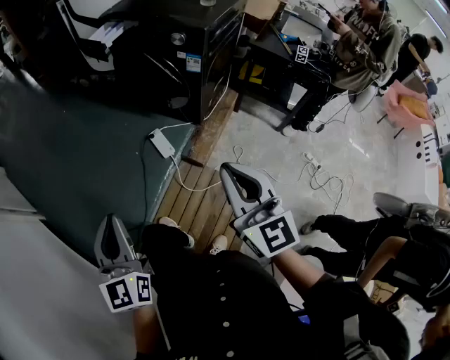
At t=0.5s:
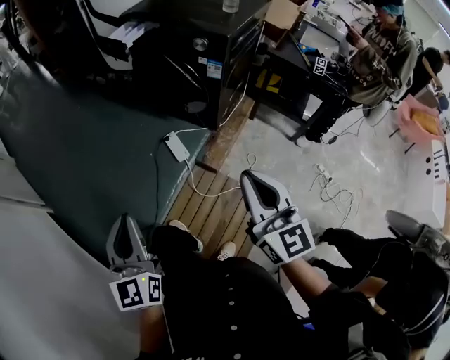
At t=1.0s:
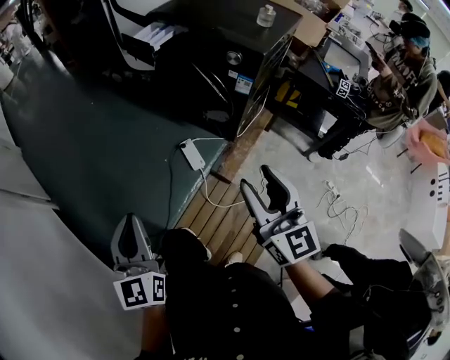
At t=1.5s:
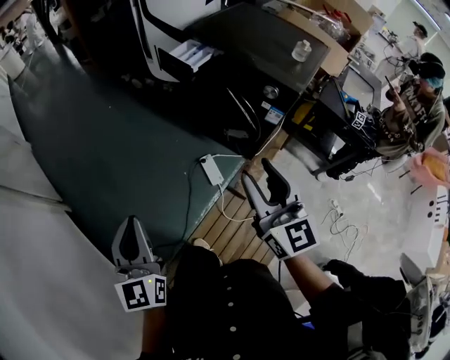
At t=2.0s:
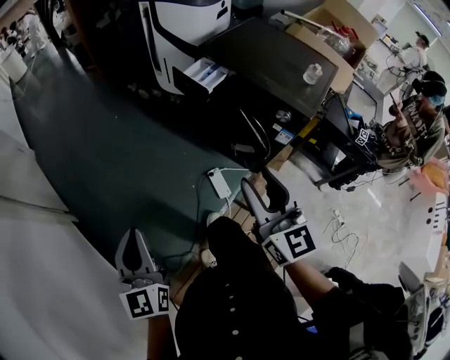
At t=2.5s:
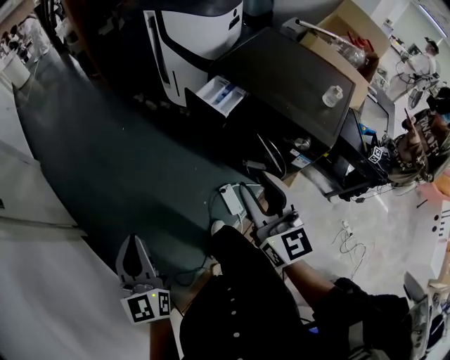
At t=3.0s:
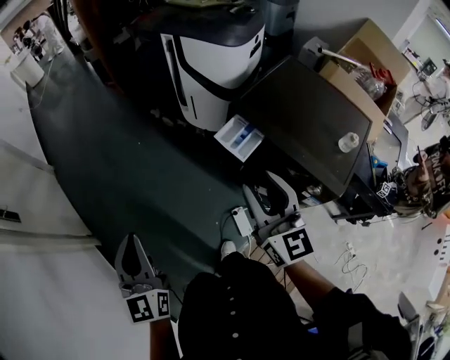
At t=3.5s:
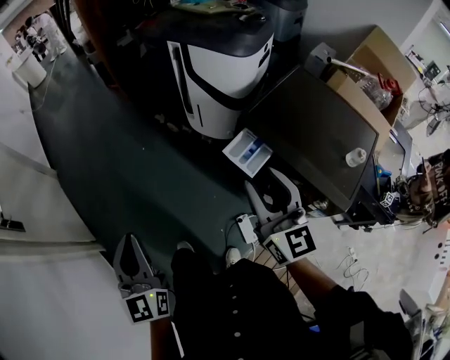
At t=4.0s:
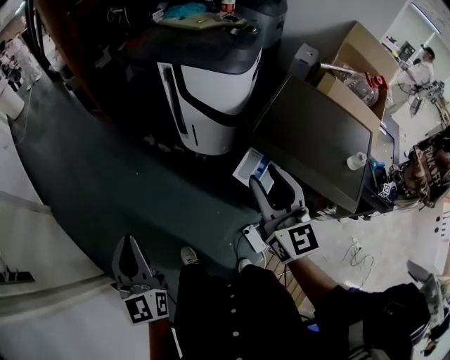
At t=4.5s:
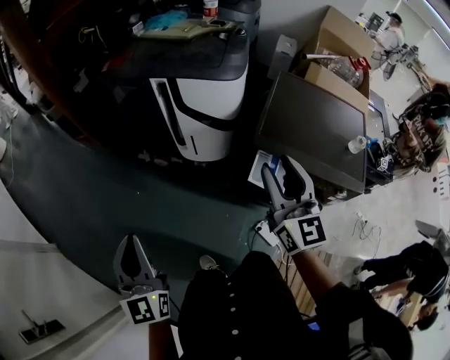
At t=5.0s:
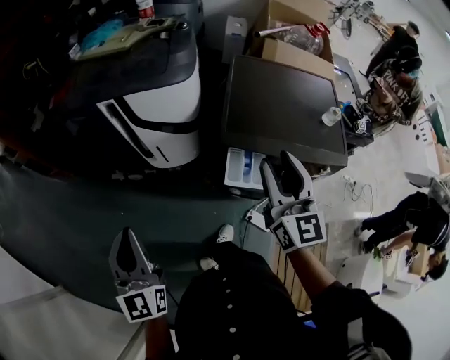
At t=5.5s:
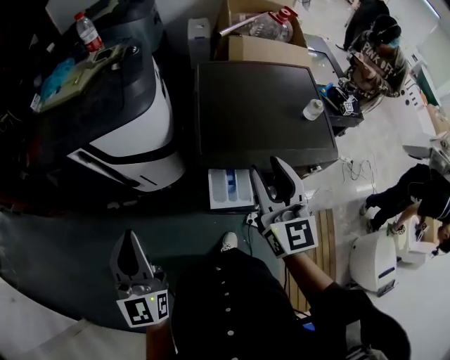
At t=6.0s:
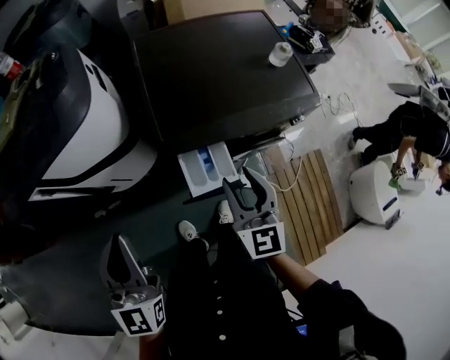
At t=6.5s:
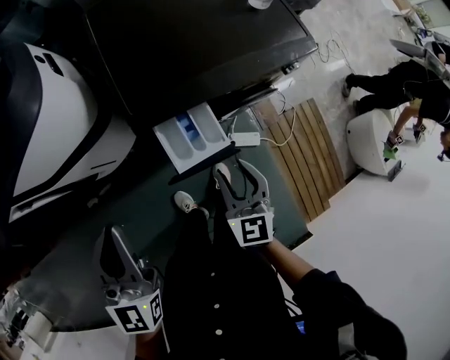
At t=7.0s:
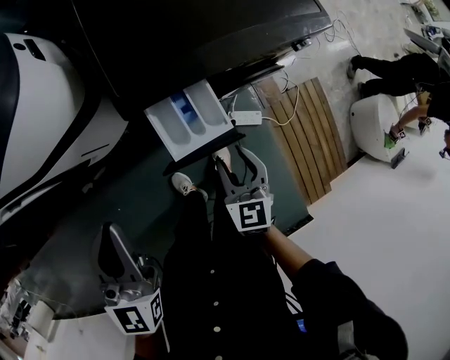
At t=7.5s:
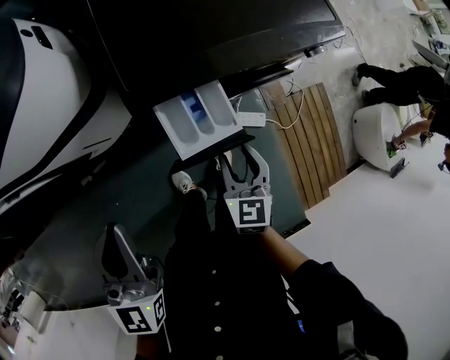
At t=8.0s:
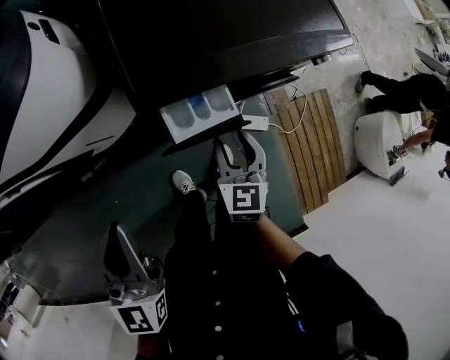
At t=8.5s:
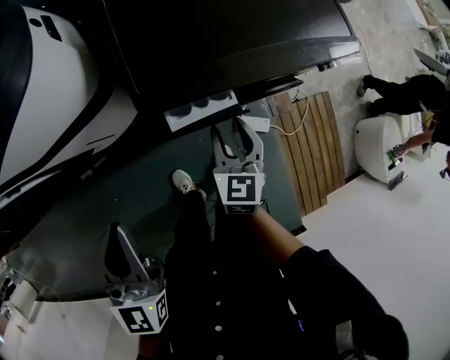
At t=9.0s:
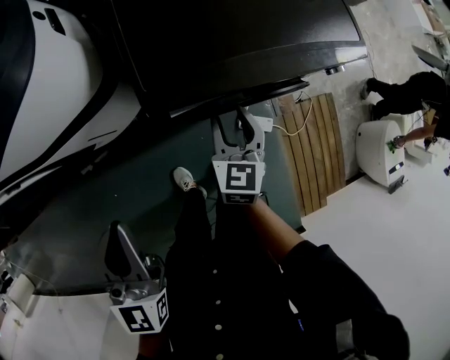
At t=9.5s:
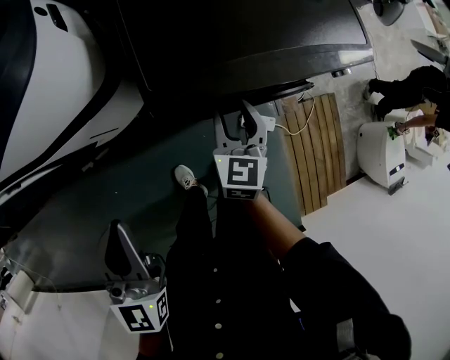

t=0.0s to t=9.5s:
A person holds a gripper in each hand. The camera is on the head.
t=0.0s to t=2.0s: The right gripper goes about 30 cm forward and to the left, and opens its fingers. Meanwhile the left gripper heads forward, to the left and upward, covering roughly 30 cm.
t=2.0s to t=4.0s: Both grippers are carried forward, roughly 40 cm.
t=4.0s to t=5.5s: The left gripper shifts by approximately 30 cm, and swivels roughly 40 degrees, while the right gripper changes place by some 15 cm, and rotates some 40 degrees.
t=5.5s to t=7.5s: The right gripper shifts approximately 30 cm downward, and tips its fingers downward by approximately 30 degrees; the left gripper goes some 15 cm downward, and swivels roughly 30 degrees.
t=7.5s to t=9.5s: The right gripper heads forward, covering about 15 cm.

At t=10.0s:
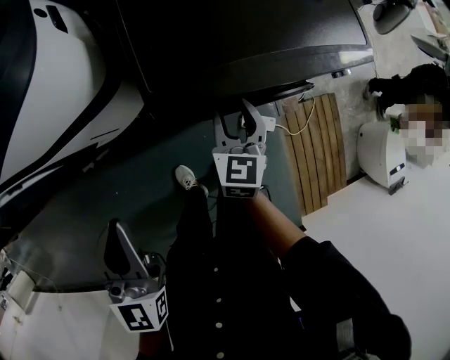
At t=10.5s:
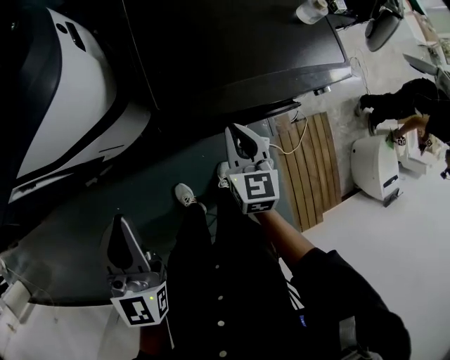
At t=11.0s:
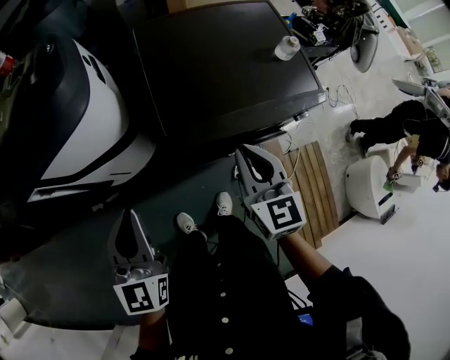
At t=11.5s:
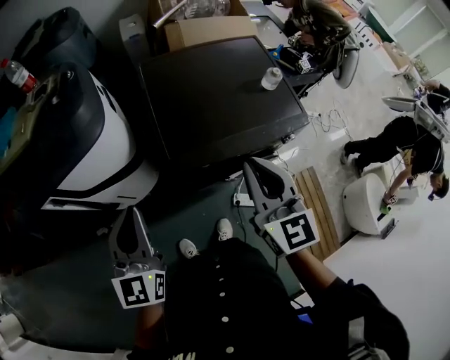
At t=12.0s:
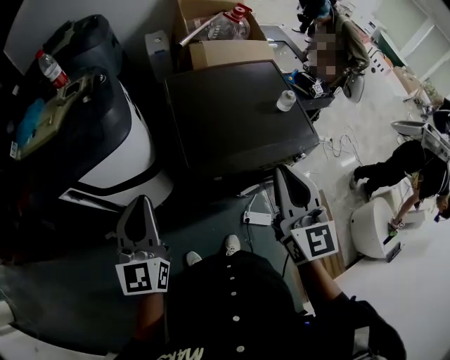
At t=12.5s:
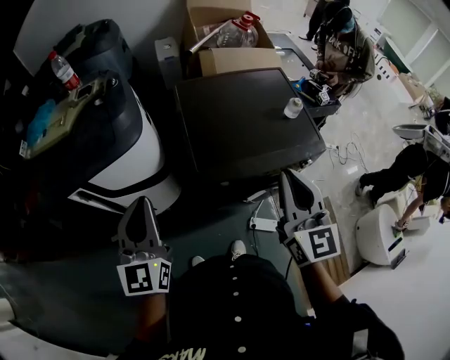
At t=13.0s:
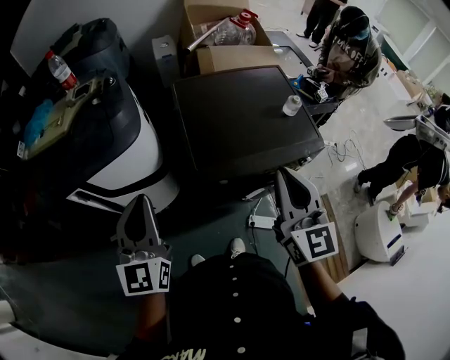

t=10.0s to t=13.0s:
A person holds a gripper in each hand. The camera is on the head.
t=10.0s to t=11.5s: The right gripper goes roughly 30 cm upward, rotates about 30 degrees, and closes; the left gripper goes about 10 cm upward.
t=11.5s to t=13.0s: The left gripper changes place by approximately 5 cm.

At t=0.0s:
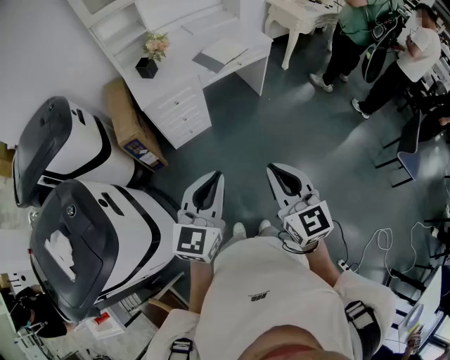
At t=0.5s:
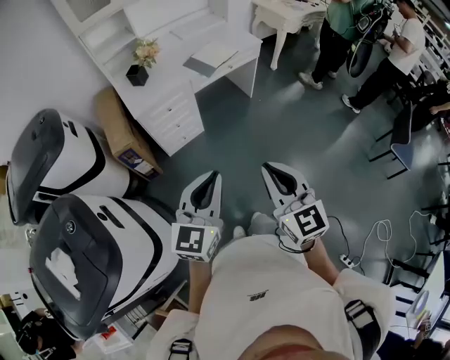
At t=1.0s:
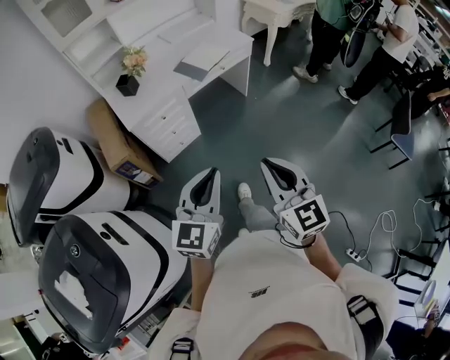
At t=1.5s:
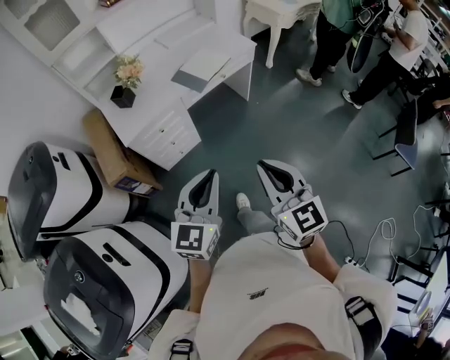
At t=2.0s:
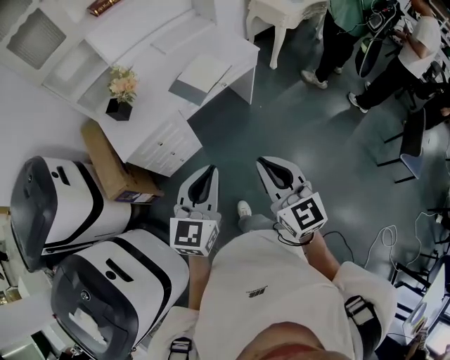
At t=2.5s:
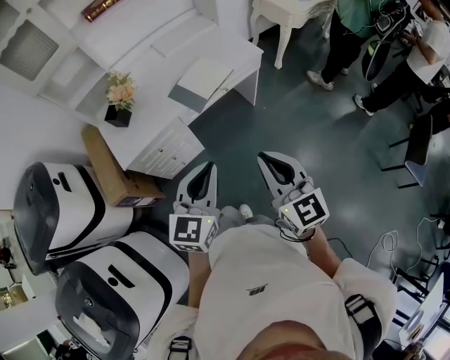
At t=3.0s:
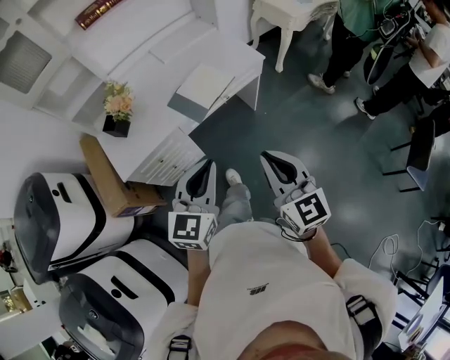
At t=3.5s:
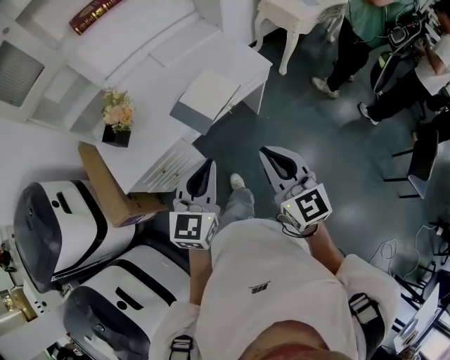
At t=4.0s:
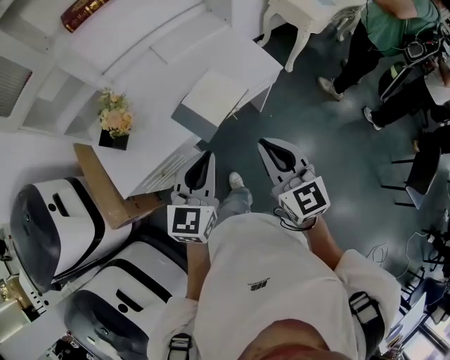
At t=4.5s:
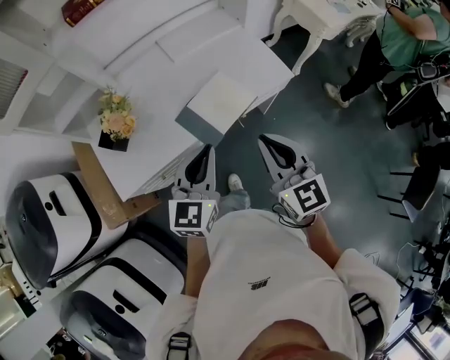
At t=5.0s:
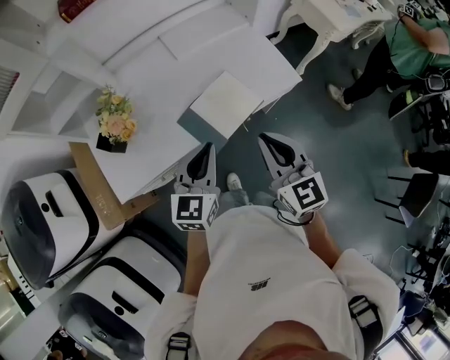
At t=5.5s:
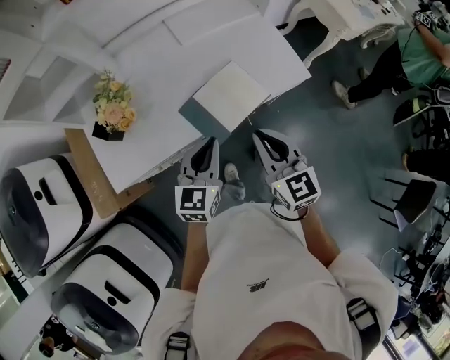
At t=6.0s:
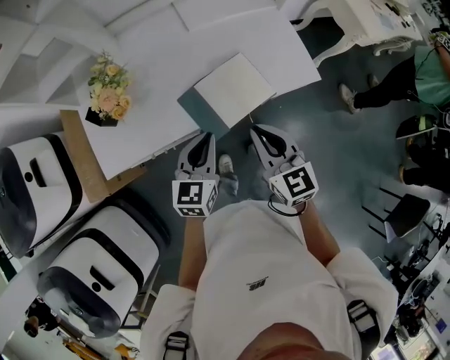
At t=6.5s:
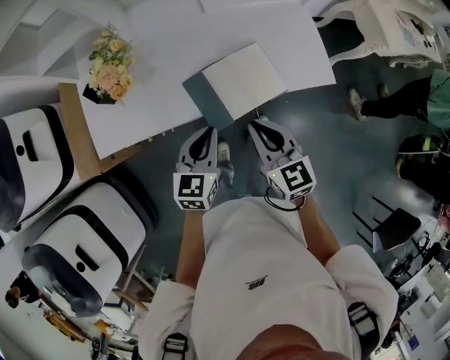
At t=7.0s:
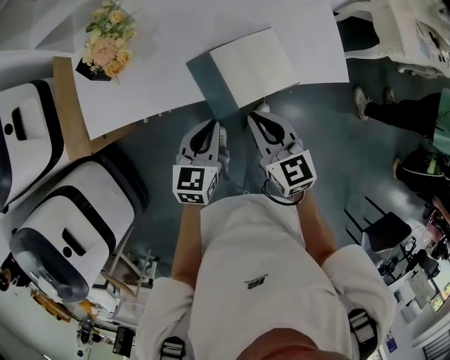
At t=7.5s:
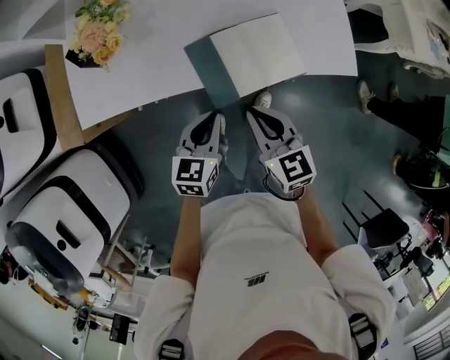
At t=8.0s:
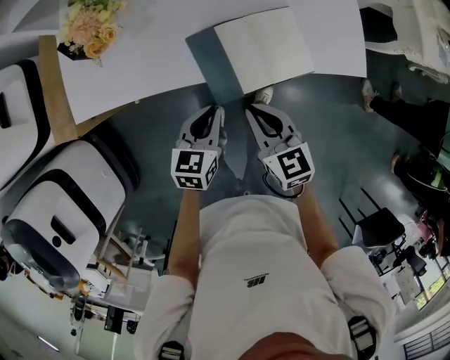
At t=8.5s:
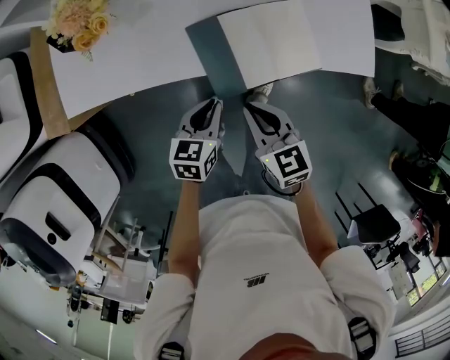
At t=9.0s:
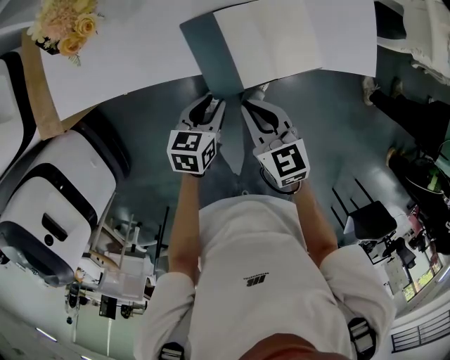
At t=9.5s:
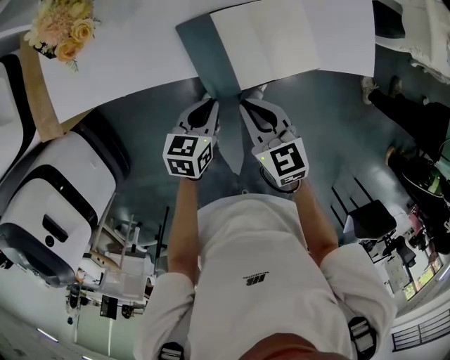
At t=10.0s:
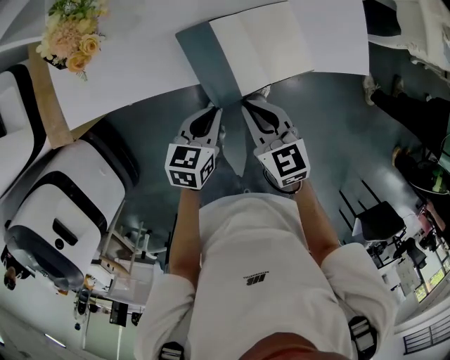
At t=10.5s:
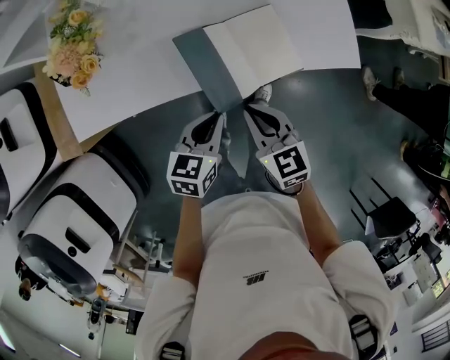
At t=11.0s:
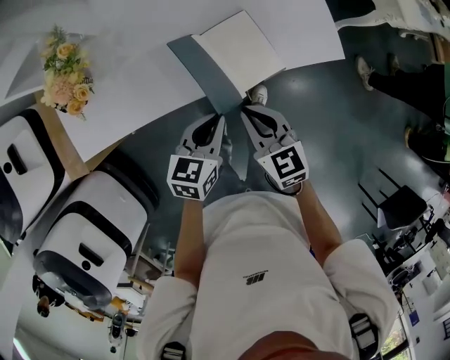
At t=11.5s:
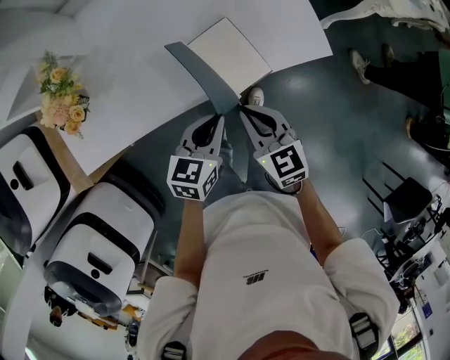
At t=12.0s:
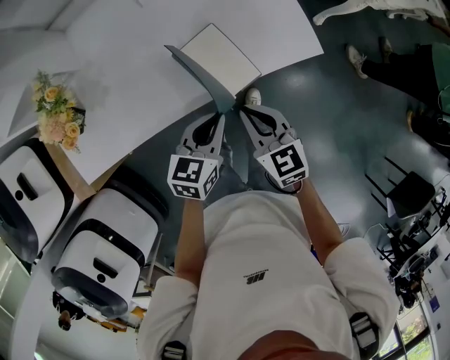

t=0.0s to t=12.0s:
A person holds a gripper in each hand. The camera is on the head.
t=0.0s to t=2.0s: The grippers both shift forward by approximately 30 cm.
t=2.0s to t=4.0s: Both grippers move forward, approximately 30 cm.
t=4.0s to t=6.0s: The left gripper goes about 20 cm downward and forward, and changes its angle by approximately 20 degrees; the right gripper heads forward and downward, covering some 20 cm.
t=6.0s to t=8.0s: The grippers both shift downward by approximately 15 cm. The right gripper rotates roughly 20 degrees.
t=10.0s to t=12.0s: The right gripper heads to the right, covering about 10 cm, while the left gripper travels to the right, upward and forward by some 15 cm.

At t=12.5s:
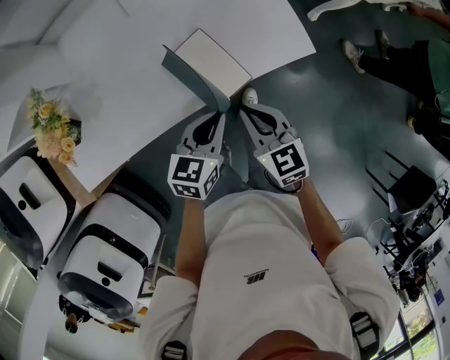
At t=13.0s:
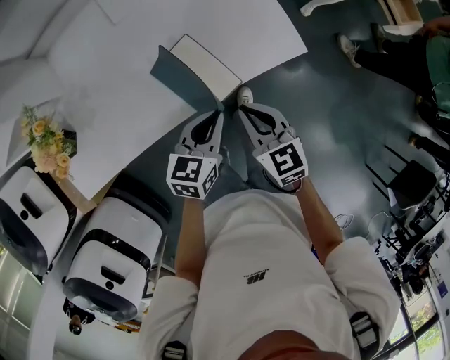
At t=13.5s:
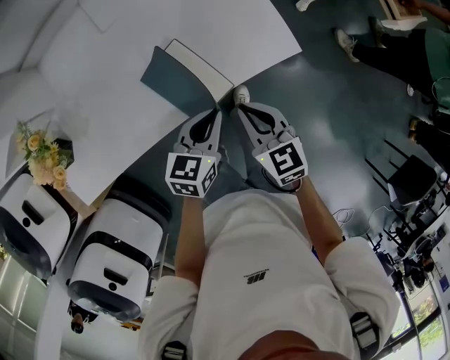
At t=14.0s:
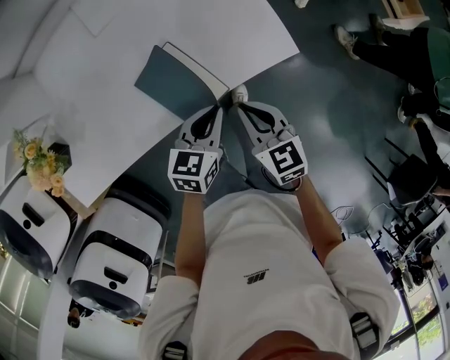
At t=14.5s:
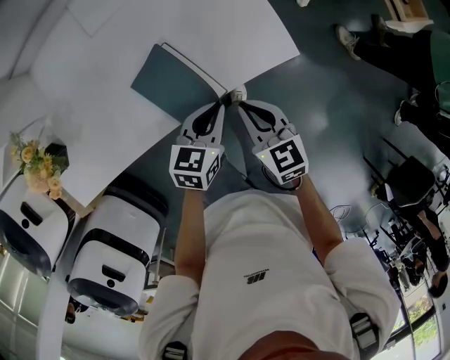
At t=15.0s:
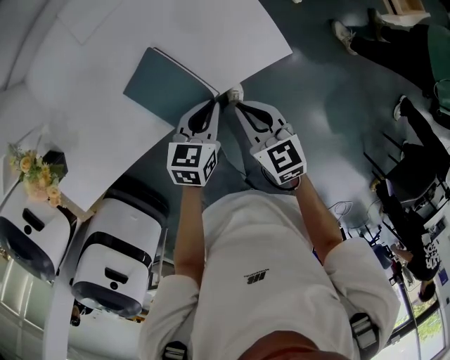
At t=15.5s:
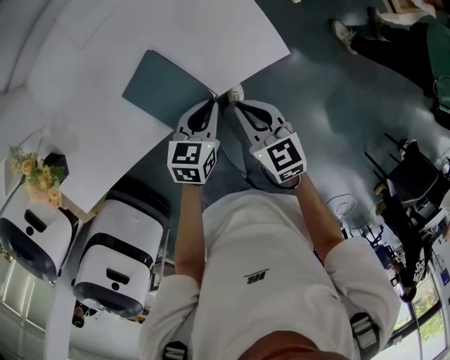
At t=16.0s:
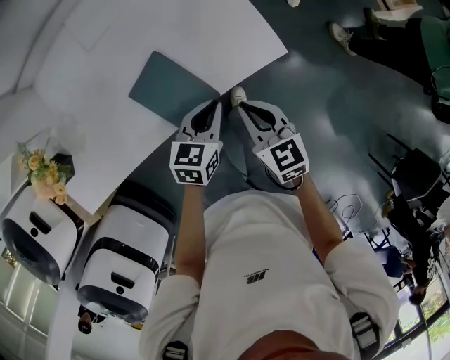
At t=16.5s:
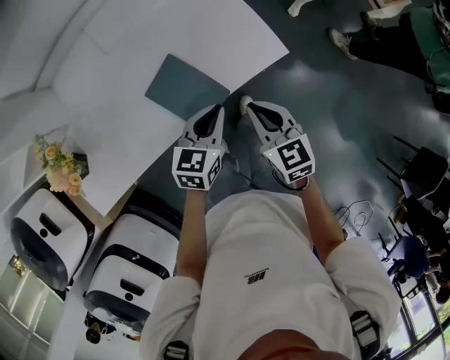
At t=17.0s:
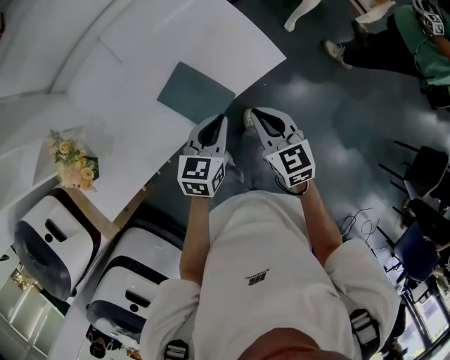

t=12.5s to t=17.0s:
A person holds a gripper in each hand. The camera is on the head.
t=12.5s to t=14.5s: The left gripper goes about 10 cm to the right, forward and downward; the right gripper heads to the right, covering some 5 cm.
t=14.5s to t=17.0s: Both grippers travel together upward, some 10 cm.
